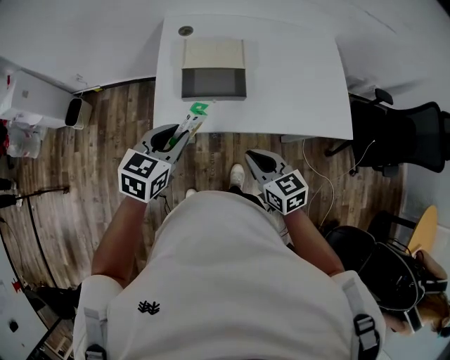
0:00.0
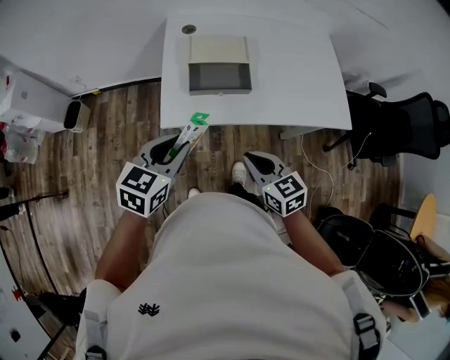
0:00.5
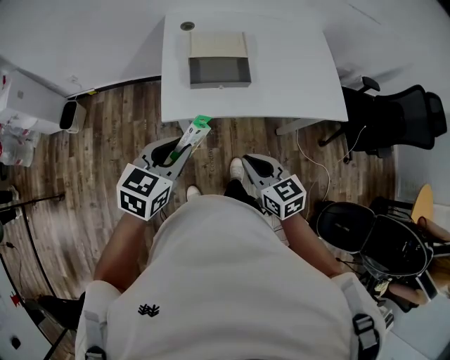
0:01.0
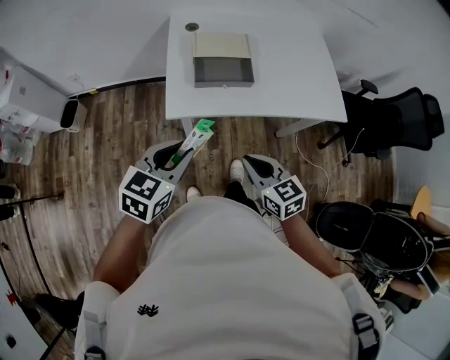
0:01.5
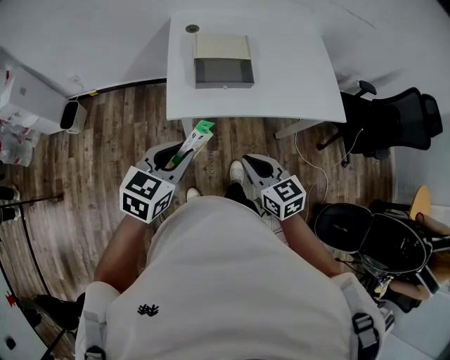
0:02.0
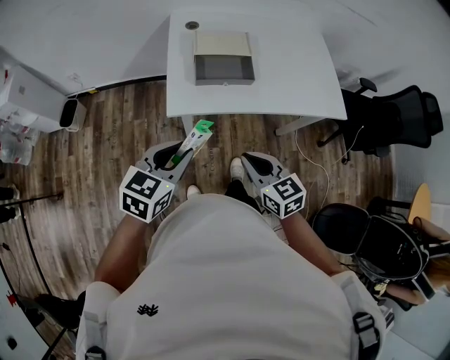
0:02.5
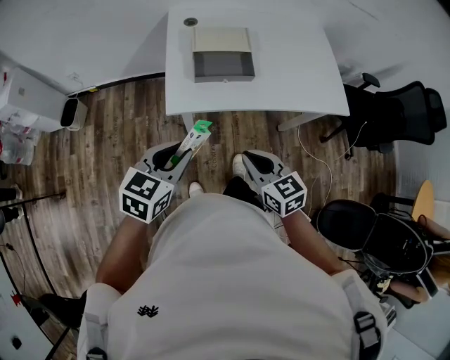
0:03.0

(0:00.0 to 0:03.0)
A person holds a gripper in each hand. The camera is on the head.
0:00.0 - 0:01.5: The two grippers go approximately 15 cm backward and to the left.
0:01.5 - 0:03.0: The grippers move only a little.

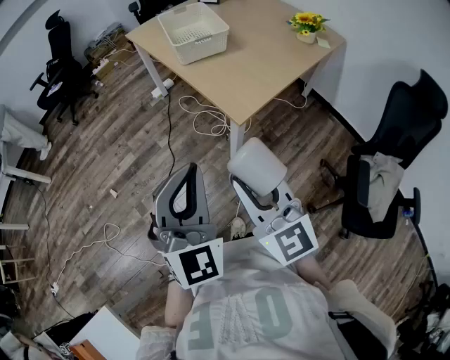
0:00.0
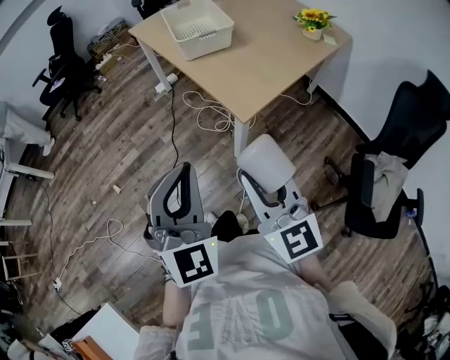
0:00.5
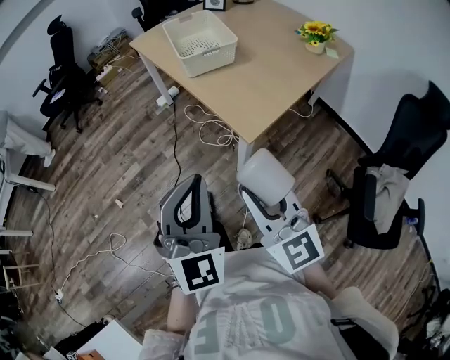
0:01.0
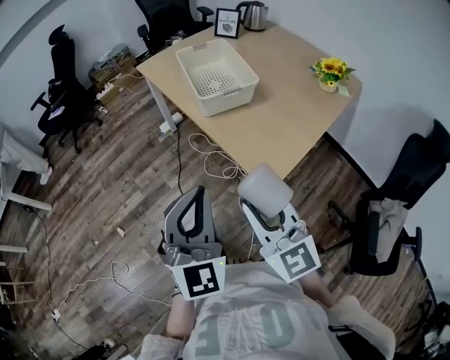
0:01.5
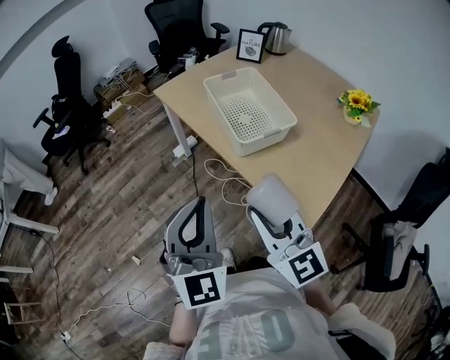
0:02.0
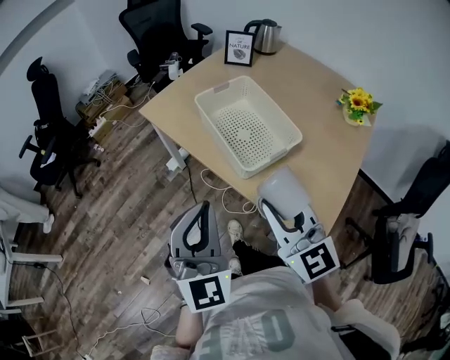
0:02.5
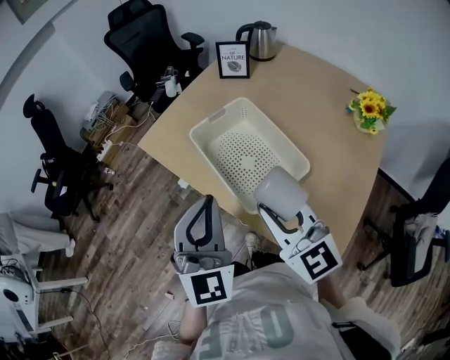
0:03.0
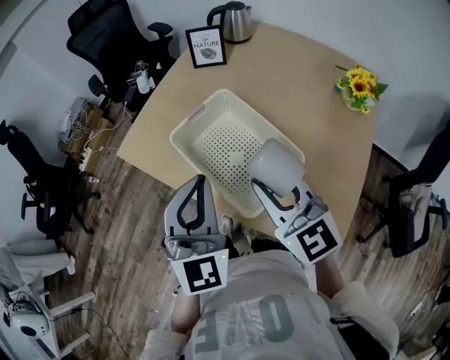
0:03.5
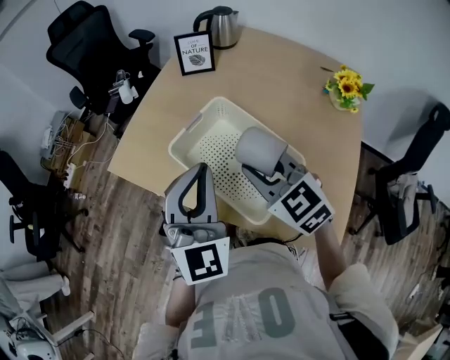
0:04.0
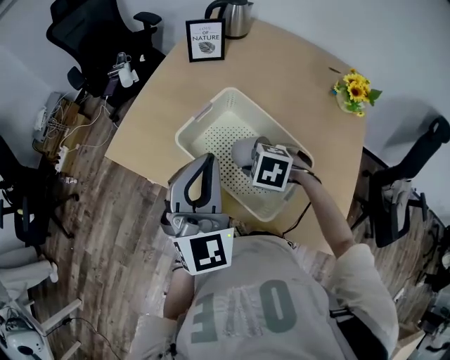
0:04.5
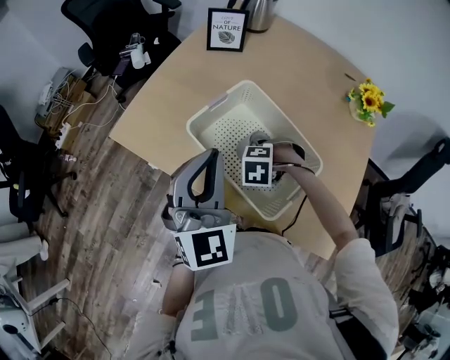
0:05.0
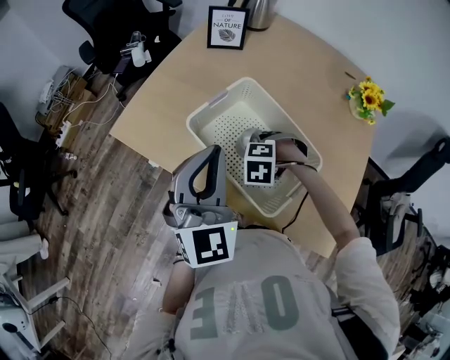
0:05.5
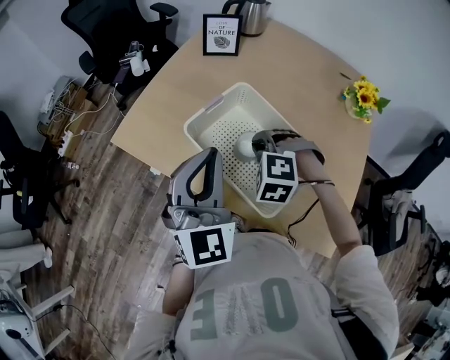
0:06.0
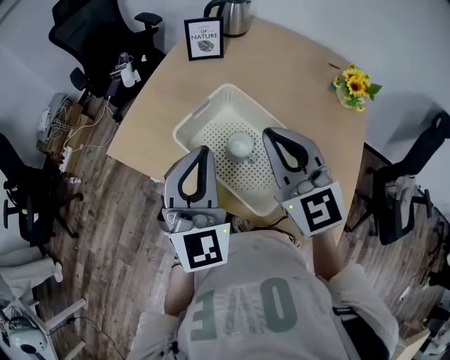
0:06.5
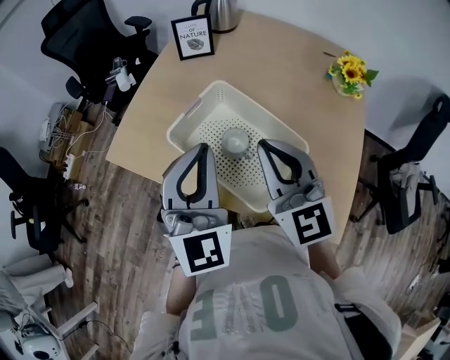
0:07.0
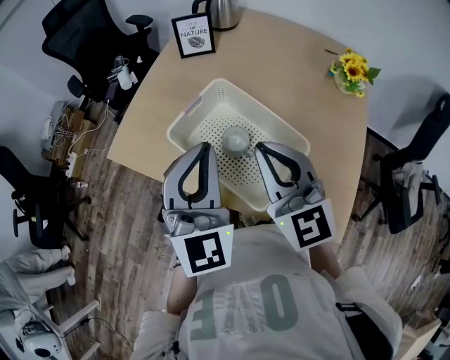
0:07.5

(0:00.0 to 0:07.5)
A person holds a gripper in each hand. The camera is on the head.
0:00.0 - 0:02.0: The left gripper is displaced forward and to the left by roughly 40 cm. Meanwhile the right gripper is displaced forward by roughly 35 cm.
0:02.0 - 0:04.0: Both grippers are carried forward, some 40 cm. The left gripper rotates roughly 30 degrees, while the right gripper turns by roughly 30 degrees.
0:04.0 - 0:05.5: The left gripper ends up some 5 cm from where it was. Meanwhile the right gripper travels downward by roughly 20 cm, and tilts its fingers approximately 50 degrees downward.
0:05.5 - 0:07.5: The right gripper heads upward, covering approximately 30 cm, tips its fingers upward by some 70 degrees, and closes, while the left gripper moves approximately 5 cm.

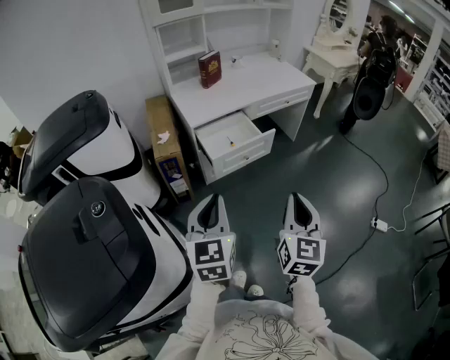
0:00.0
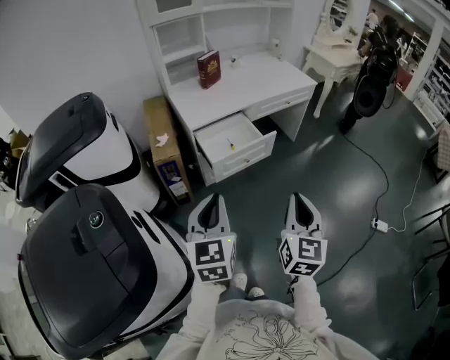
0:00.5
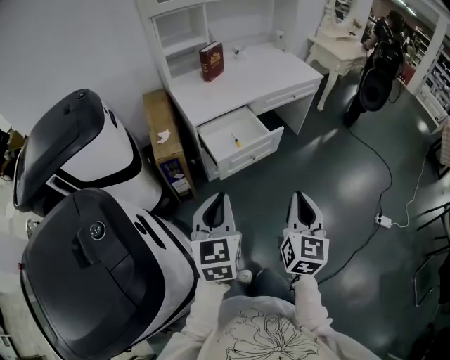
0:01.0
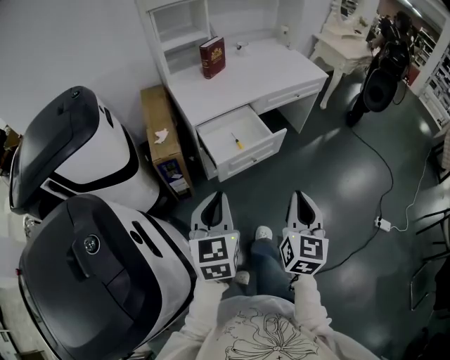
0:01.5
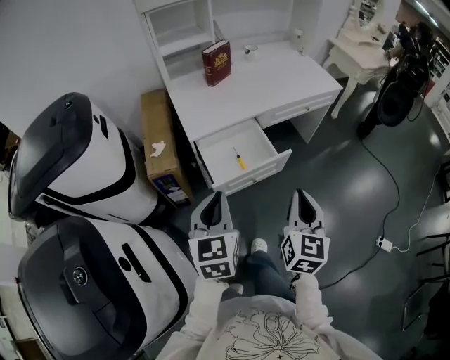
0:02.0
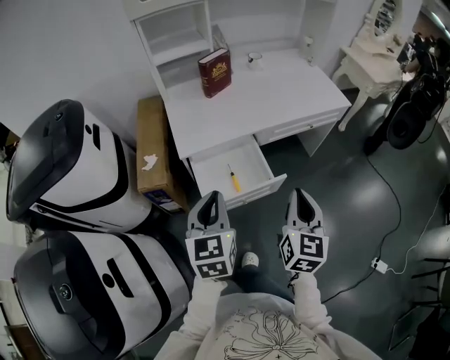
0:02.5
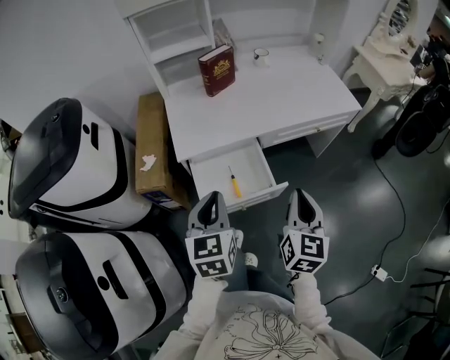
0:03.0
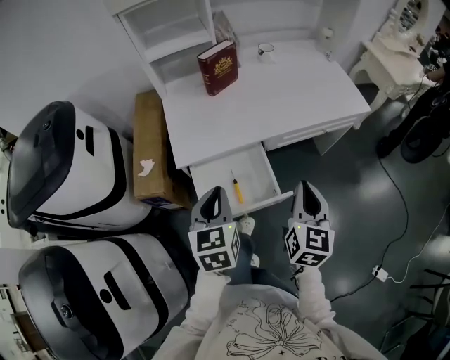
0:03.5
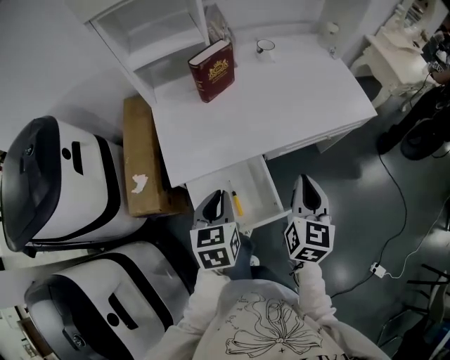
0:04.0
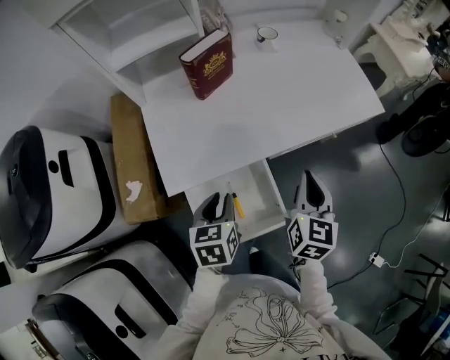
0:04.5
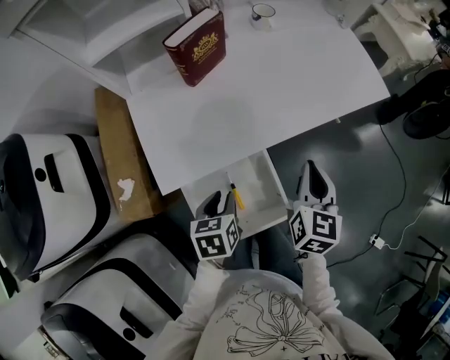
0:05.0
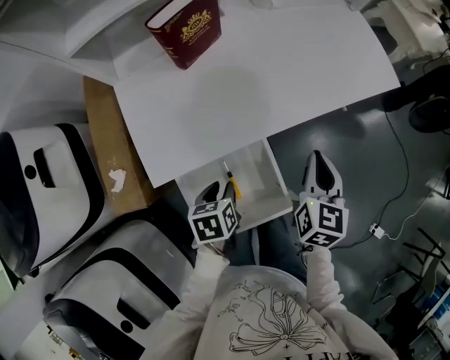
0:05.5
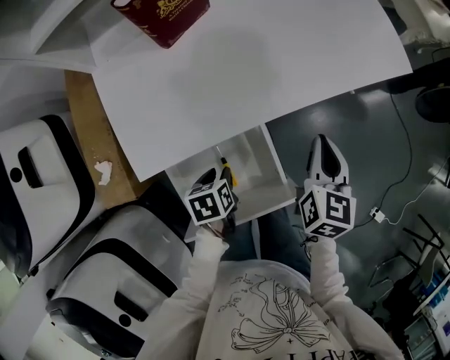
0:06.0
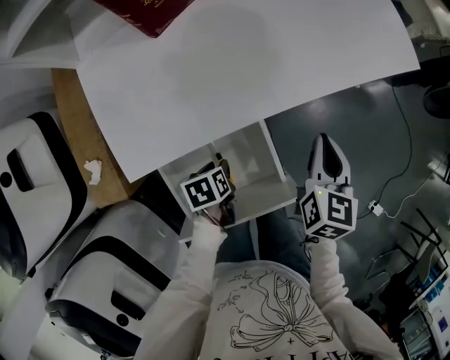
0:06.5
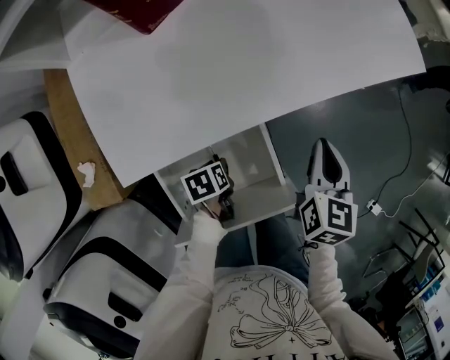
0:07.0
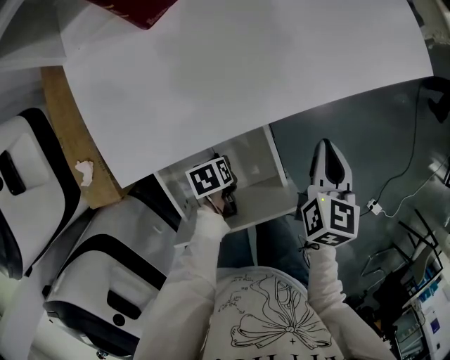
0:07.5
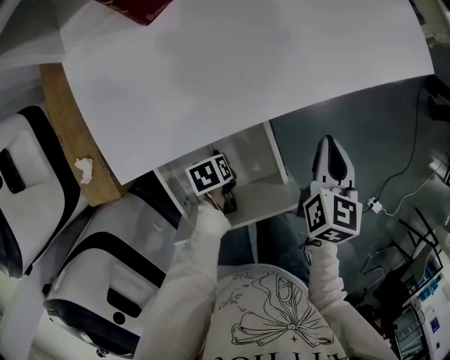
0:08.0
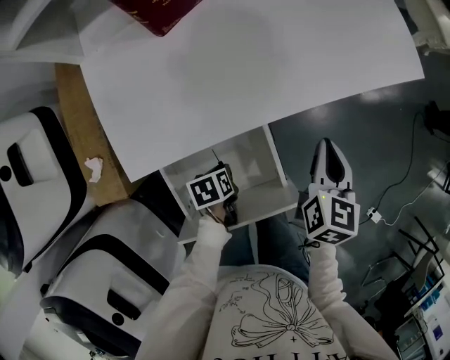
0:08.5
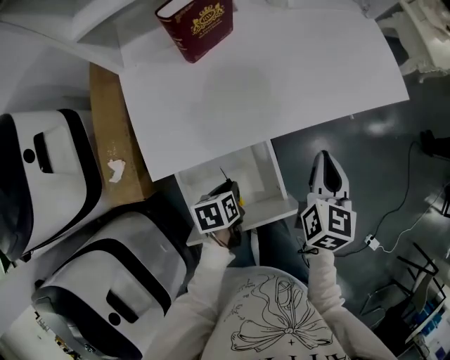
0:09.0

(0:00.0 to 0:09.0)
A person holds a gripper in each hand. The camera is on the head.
0:00.0 - 0:02.0: Both grippers move forward, approximately 25 cm.
0:02.0 - 0:04.5: The left gripper goes some 40 cm forward and downward, and swivels some 30 degrees; the right gripper heads forward, covering some 40 cm.
0:04.5 - 0:07.0: The right gripper goes approximately 15 cm downward. Meanwhile the left gripper moves downward, about 30 cm, and turns by some 40 degrees.
0:07.0 - 0:09.0: The grippers both shift upward by about 10 cm.

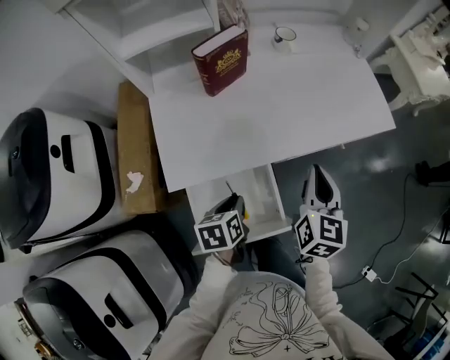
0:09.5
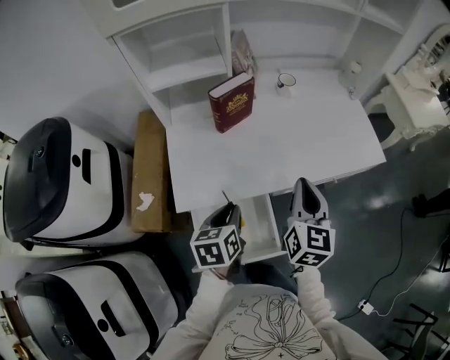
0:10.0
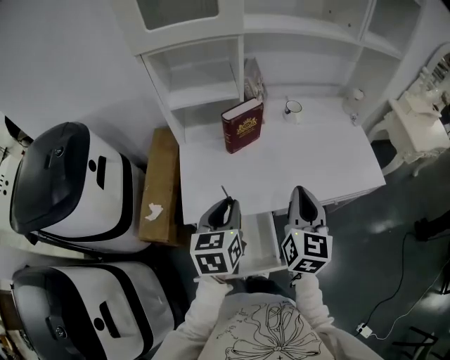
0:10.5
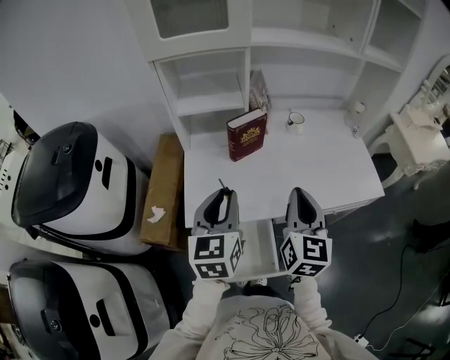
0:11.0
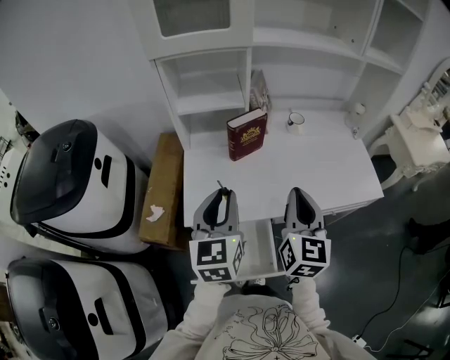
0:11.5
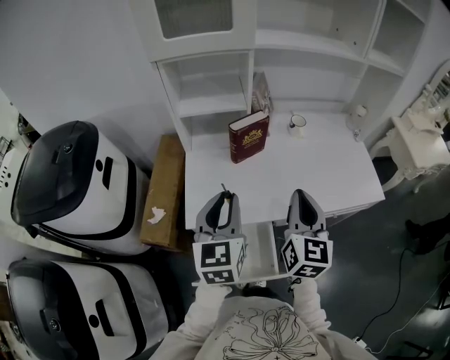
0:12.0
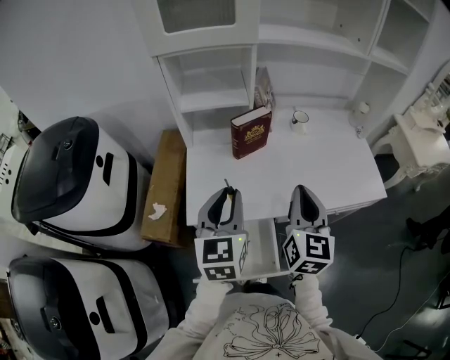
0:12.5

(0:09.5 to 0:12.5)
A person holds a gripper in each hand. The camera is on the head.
0:09.5 - 0:11.0: The right gripper heads upward and to the left, covering approximately 15 cm, and rotates about 20 degrees, while the left gripper travels upward by about 30 cm, and angles its fingers upward, by some 40 degrees.
0:11.0 - 0:12.5: The two grippers keep their place.

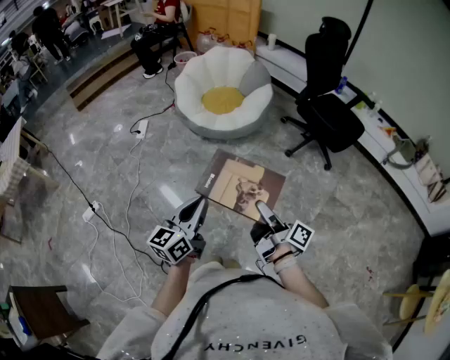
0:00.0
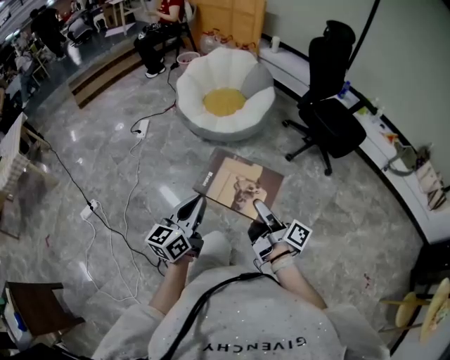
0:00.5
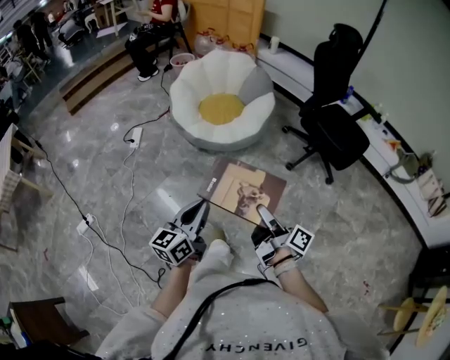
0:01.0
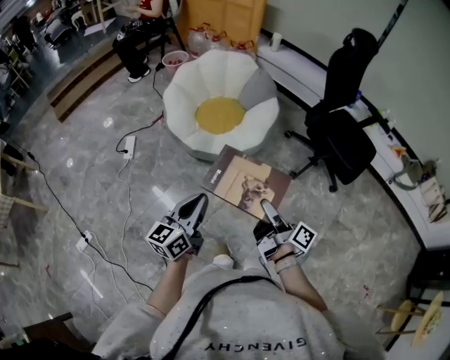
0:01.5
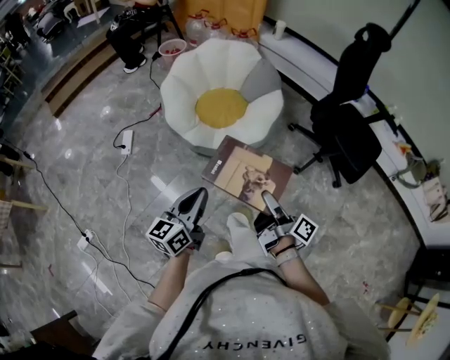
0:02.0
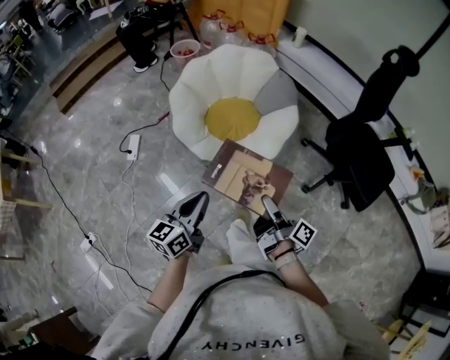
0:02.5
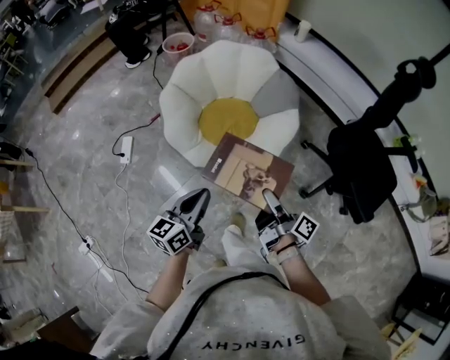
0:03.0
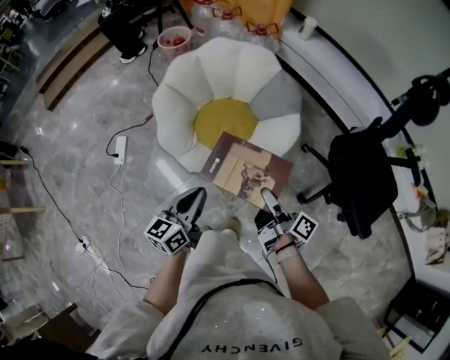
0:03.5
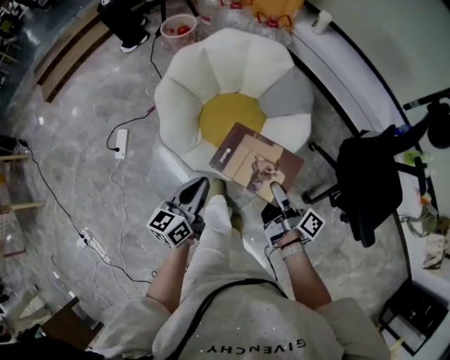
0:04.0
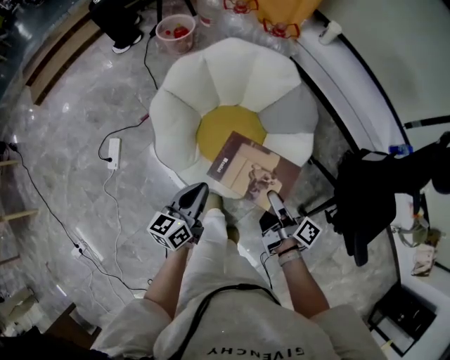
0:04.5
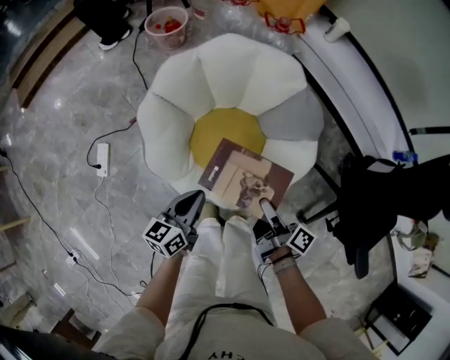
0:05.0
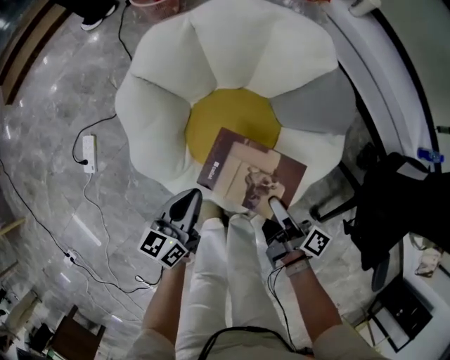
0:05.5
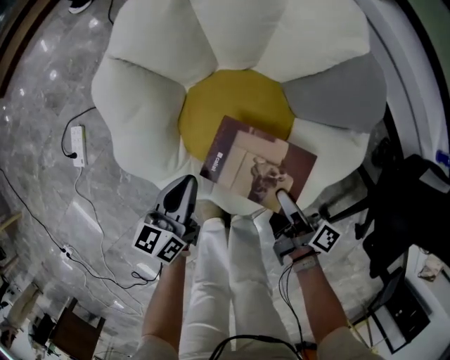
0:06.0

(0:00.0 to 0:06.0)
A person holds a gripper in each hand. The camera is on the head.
0:00.0 - 0:02.0: The left gripper ends up about 35 cm from where it was.
0:02.0 - 0:04.0: The left gripper shifts by approximately 35 cm.
0:04.0 - 0:06.0: The left gripper shifts some 30 cm downward.
